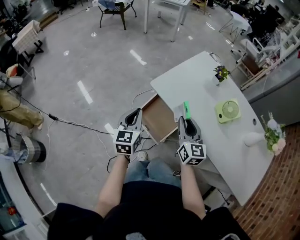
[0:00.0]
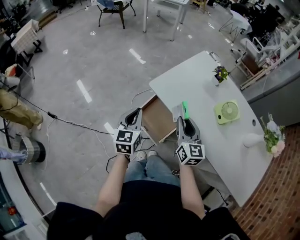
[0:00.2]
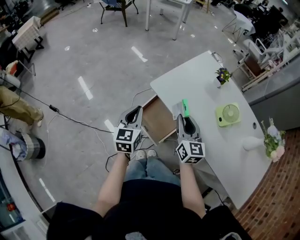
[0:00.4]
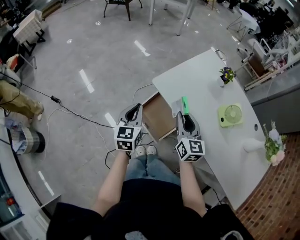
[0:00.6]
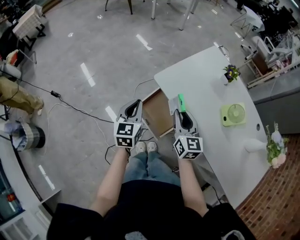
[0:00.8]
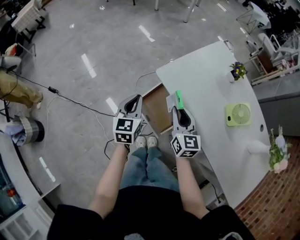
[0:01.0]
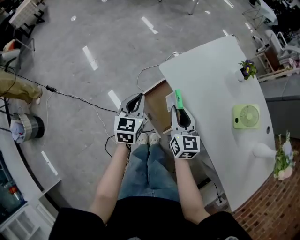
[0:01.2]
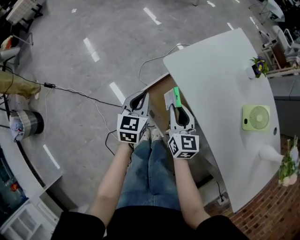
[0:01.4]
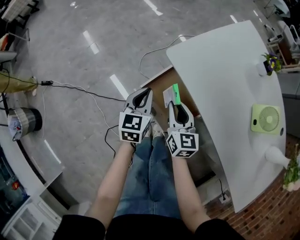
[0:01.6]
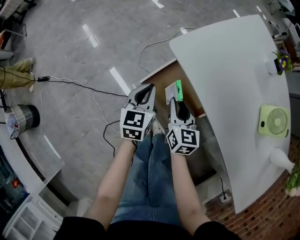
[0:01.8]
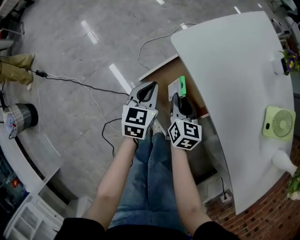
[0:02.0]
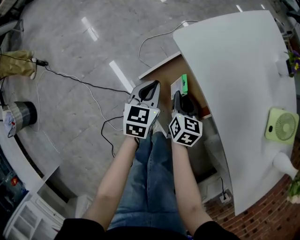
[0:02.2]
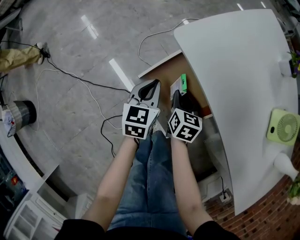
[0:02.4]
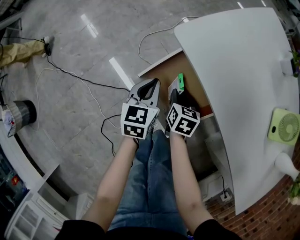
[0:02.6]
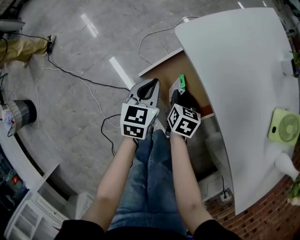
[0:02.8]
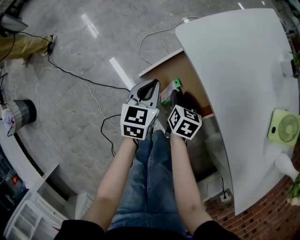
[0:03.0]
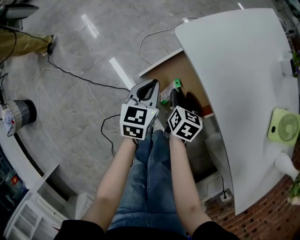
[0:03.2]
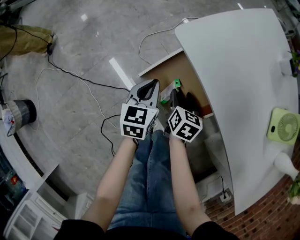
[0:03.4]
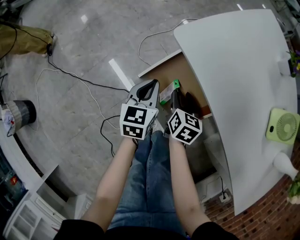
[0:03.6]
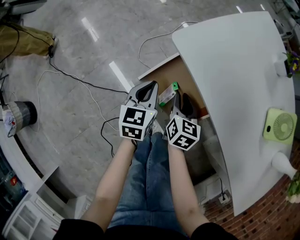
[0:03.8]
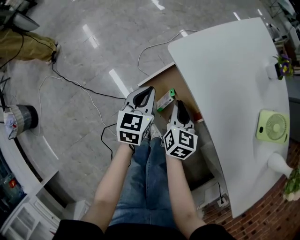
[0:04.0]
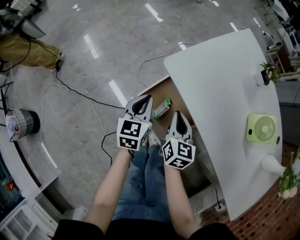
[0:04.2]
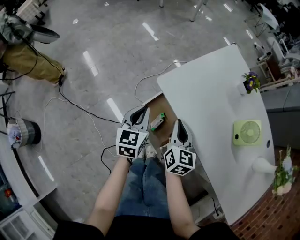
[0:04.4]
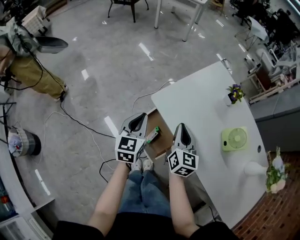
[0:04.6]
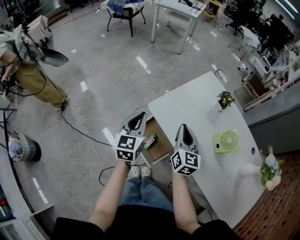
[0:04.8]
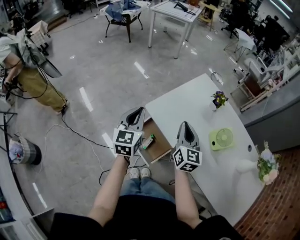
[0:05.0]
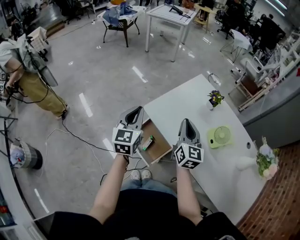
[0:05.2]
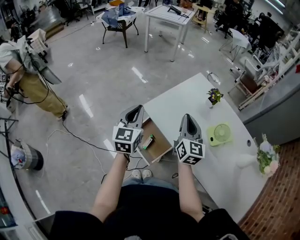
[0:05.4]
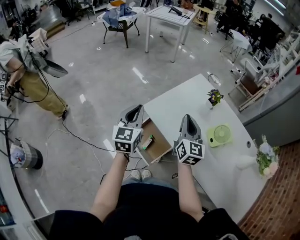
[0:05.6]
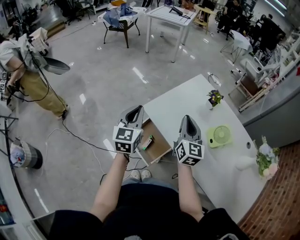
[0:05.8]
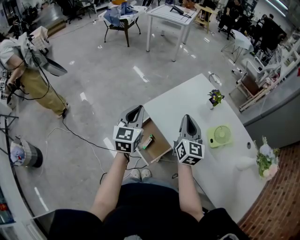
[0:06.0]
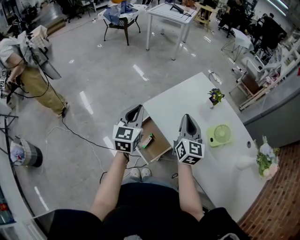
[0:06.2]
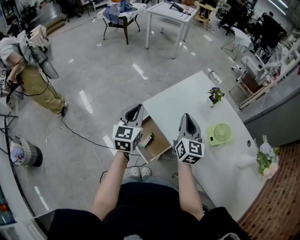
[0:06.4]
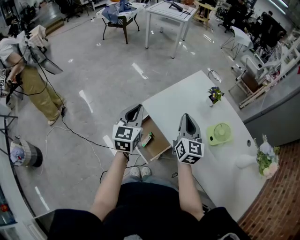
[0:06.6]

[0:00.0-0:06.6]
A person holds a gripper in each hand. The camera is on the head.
0:00.0 to 0:01.6: The left gripper shifts some 25 cm downward and forward. The right gripper travels downward by approximately 25 cm.
0:01.6 to 0:03.2: The right gripper is displaced downward by some 15 cm, swivels approximately 30 degrees, and opens its fingers. The left gripper heads downward, covering roughly 10 cm.
0:03.2 to 0:05.0: The two grippers go some 40 cm upward. The left gripper turns by about 30 degrees. The right gripper tips its fingers upward by about 40 degrees, and closes.
0:05.0 to 0:06.6: The grippers move only a little.

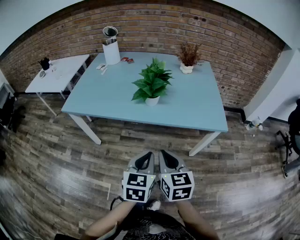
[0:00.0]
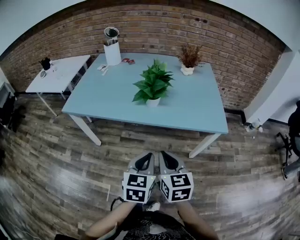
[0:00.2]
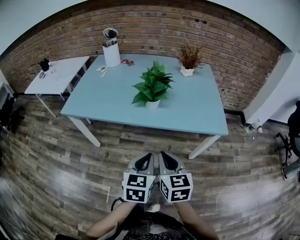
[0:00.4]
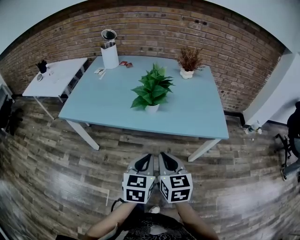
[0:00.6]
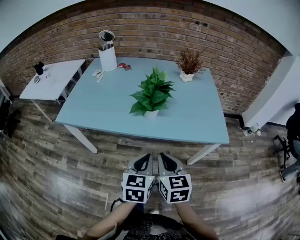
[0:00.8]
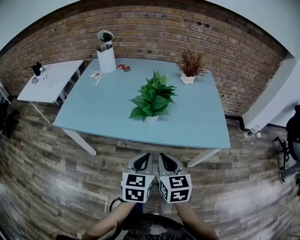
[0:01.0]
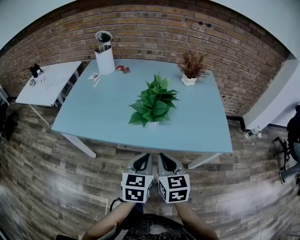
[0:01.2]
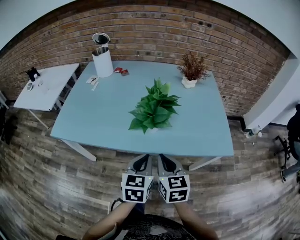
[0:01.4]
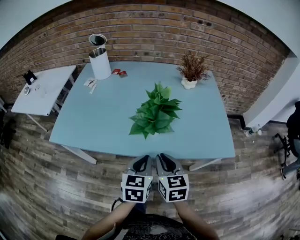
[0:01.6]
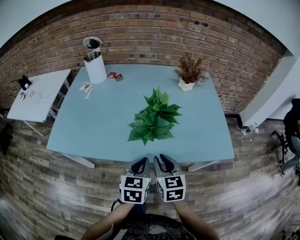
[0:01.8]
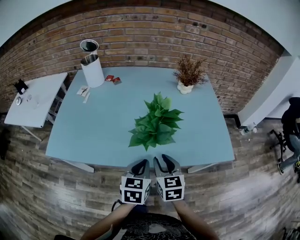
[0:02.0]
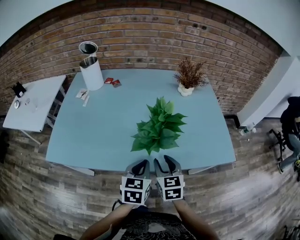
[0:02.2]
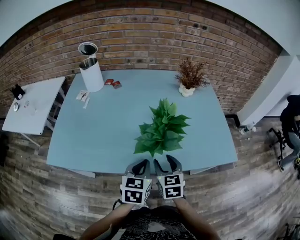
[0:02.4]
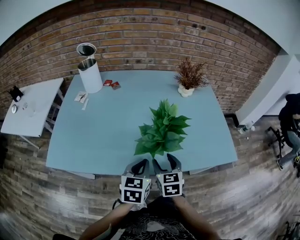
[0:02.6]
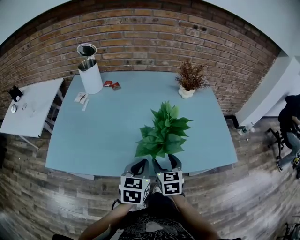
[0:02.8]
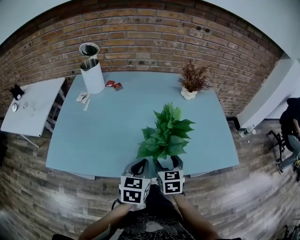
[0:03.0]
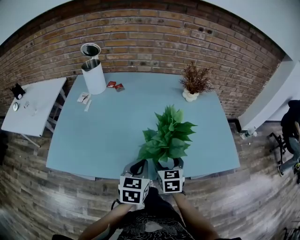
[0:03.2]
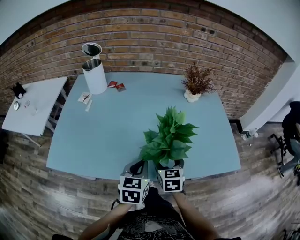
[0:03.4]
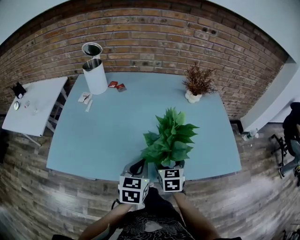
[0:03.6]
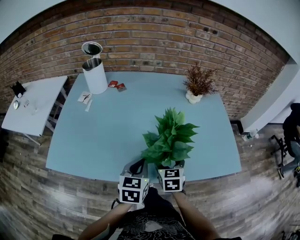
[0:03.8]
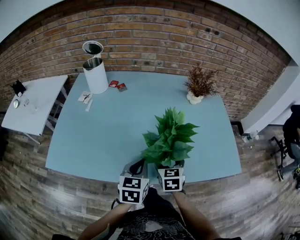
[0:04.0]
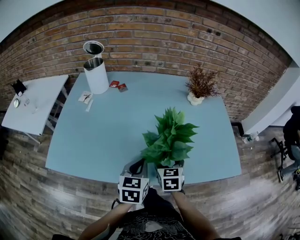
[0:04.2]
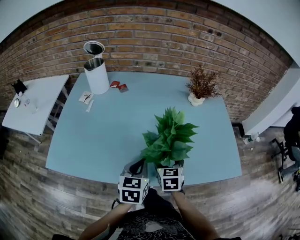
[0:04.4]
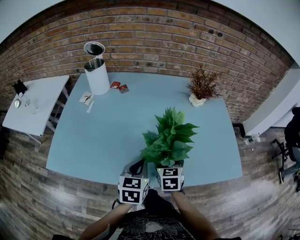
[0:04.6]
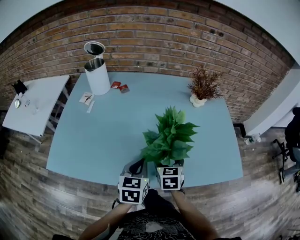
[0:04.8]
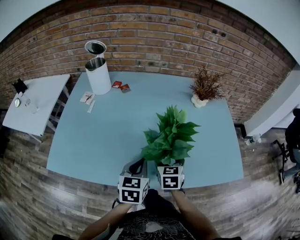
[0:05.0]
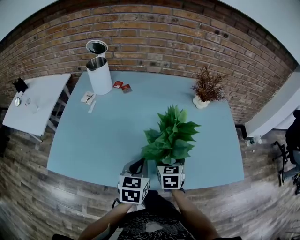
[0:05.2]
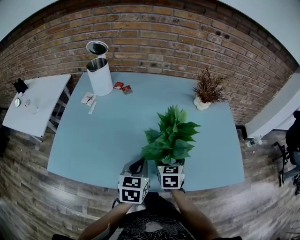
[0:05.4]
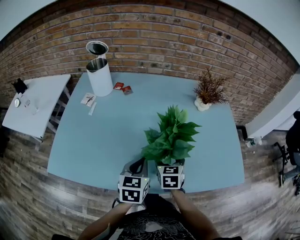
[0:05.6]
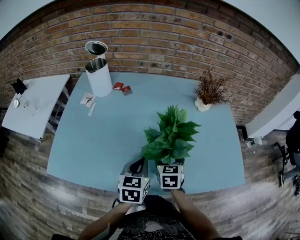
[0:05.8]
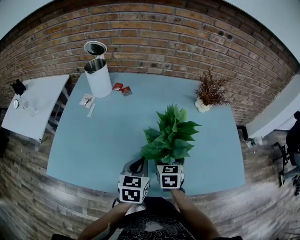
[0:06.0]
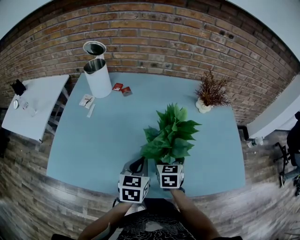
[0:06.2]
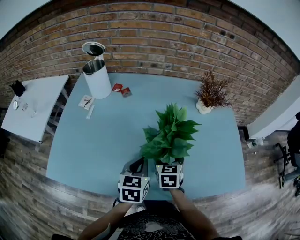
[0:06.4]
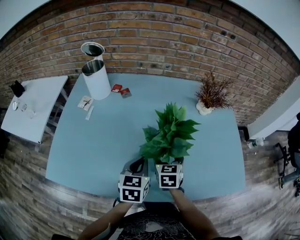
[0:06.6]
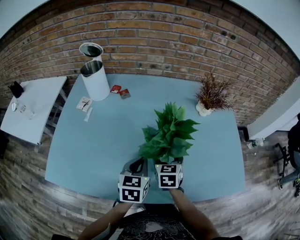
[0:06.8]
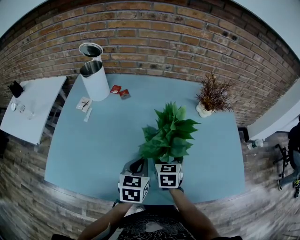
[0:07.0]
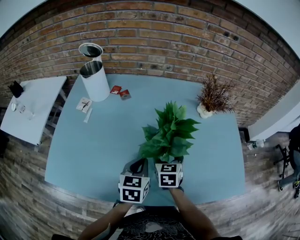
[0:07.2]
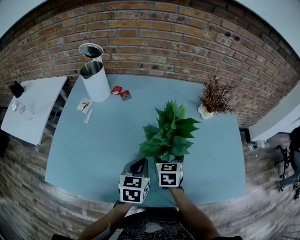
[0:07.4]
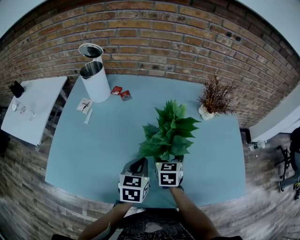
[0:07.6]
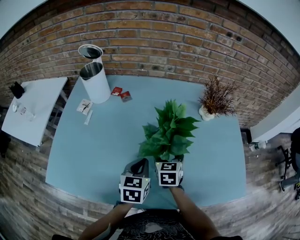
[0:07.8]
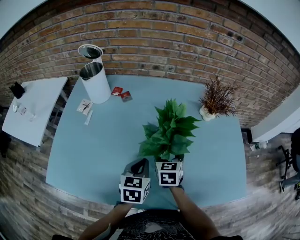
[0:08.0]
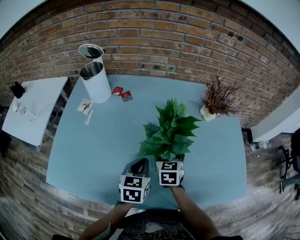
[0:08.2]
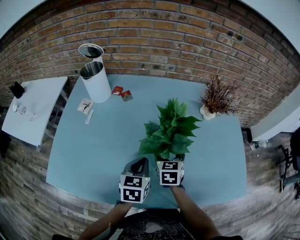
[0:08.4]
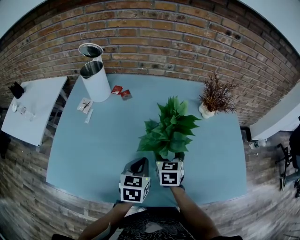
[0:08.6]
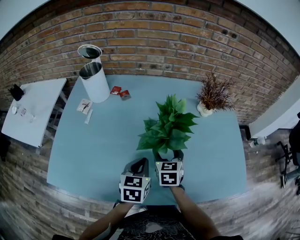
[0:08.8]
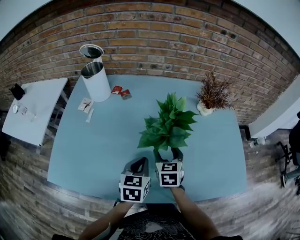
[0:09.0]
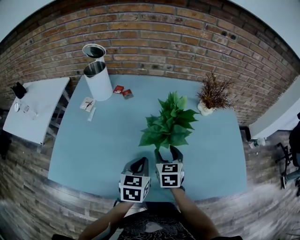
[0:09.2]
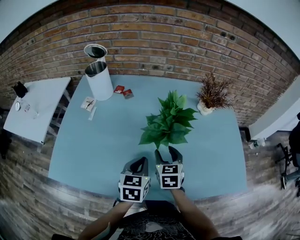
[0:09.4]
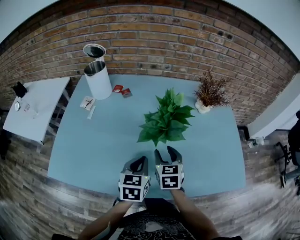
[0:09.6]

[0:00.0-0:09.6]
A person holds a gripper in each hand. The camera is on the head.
0:00.0 to 0:01.6: The grippers both shift forward by some 20 cm.
0:01.6 to 0:03.2: The left gripper moves forward and to the left, some 10 cm. Meanwhile the right gripper shifts about 15 cm forward and downward, and opens up.
0:03.2 to 0:04.8: The right gripper moves forward, about 5 cm.
0:04.8 to 0:06.4: Both grippers travel together forward, roughly 5 cm.
0:06.4 to 0:08.0: The right gripper shifts approximately 5 cm forward.
0:08.0 to 0:09.6: The right gripper moves backward, approximately 5 cm, and closes up, while the left gripper ends up some 5 cm from where it was.

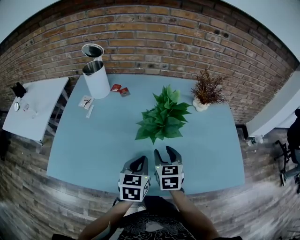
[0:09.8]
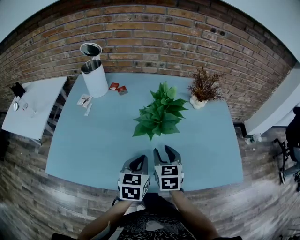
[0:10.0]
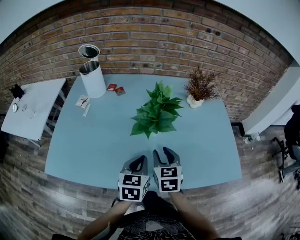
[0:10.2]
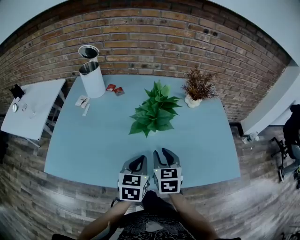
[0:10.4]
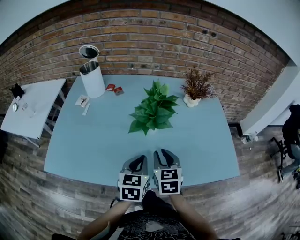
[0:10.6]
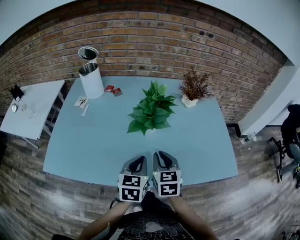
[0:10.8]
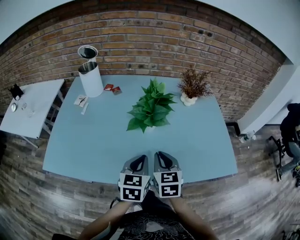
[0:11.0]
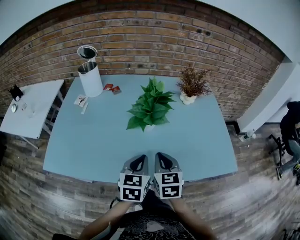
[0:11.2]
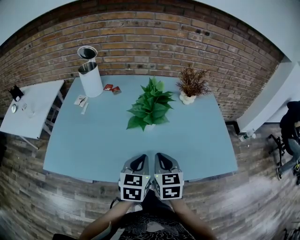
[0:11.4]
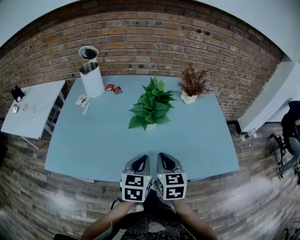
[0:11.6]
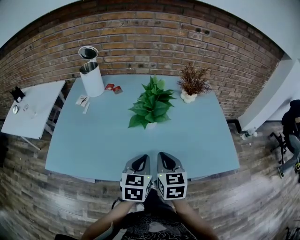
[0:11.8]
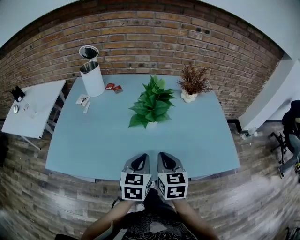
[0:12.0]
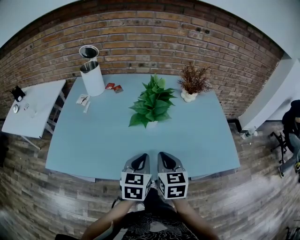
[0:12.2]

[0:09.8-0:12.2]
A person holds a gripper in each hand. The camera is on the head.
0:09.8 to 0:11.0: The right gripper travels backward by some 10 cm, and closes its fingers. Meanwhile the left gripper shifts roughly 5 cm backward.
0:11.0 to 0:12.2: The grippers stay close to where they were, moving slightly.

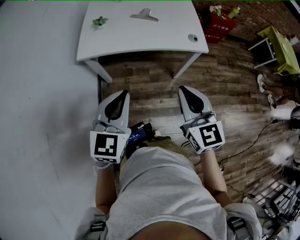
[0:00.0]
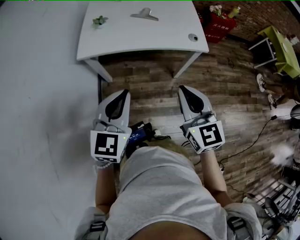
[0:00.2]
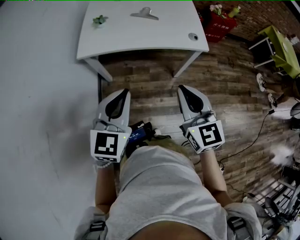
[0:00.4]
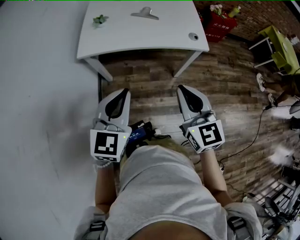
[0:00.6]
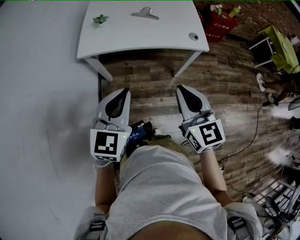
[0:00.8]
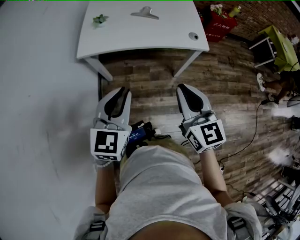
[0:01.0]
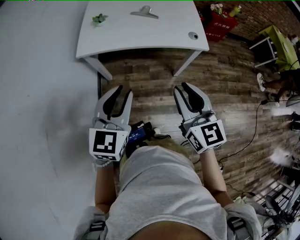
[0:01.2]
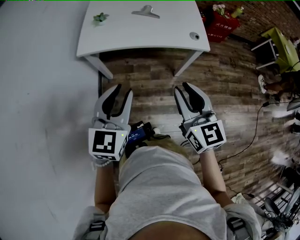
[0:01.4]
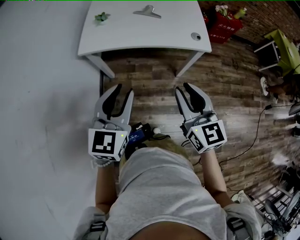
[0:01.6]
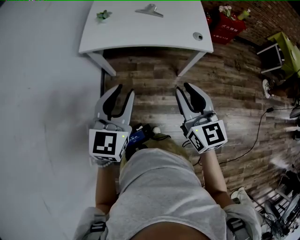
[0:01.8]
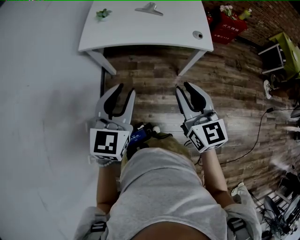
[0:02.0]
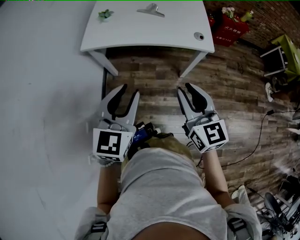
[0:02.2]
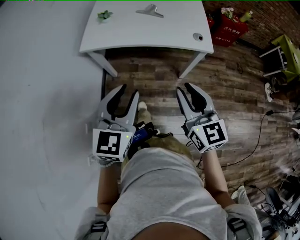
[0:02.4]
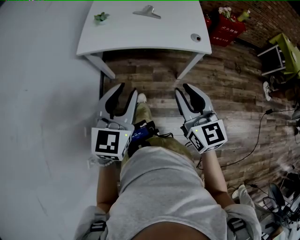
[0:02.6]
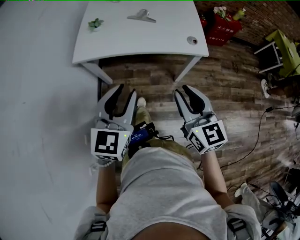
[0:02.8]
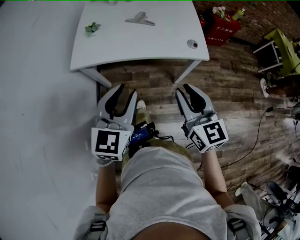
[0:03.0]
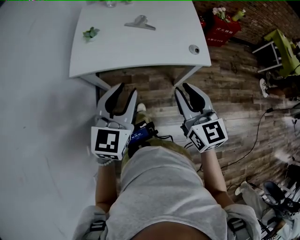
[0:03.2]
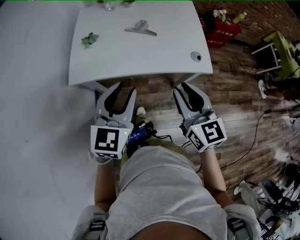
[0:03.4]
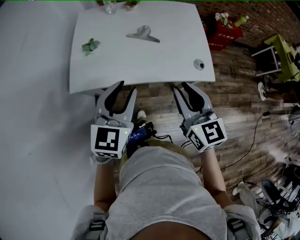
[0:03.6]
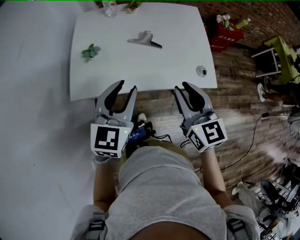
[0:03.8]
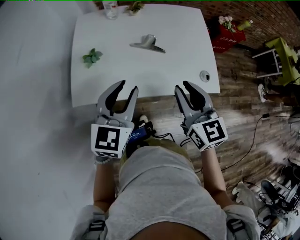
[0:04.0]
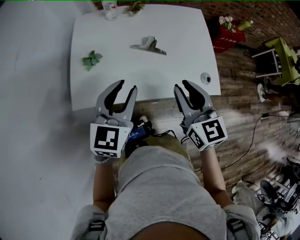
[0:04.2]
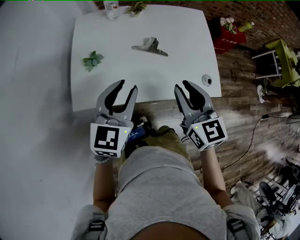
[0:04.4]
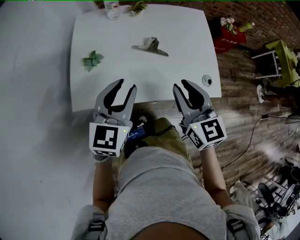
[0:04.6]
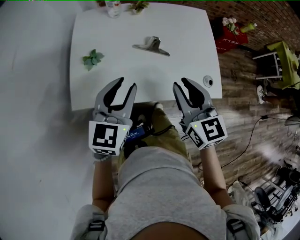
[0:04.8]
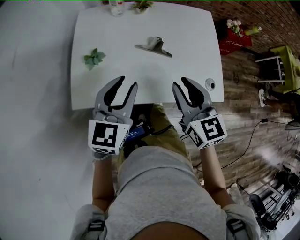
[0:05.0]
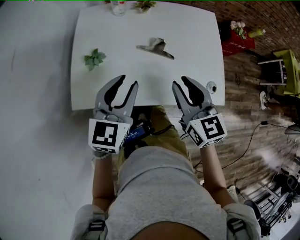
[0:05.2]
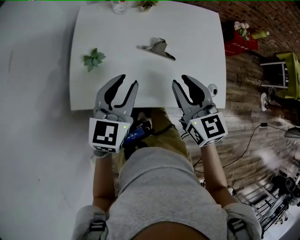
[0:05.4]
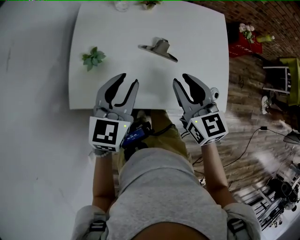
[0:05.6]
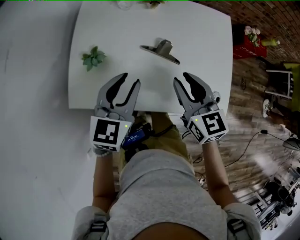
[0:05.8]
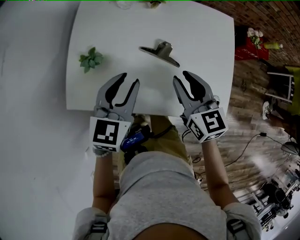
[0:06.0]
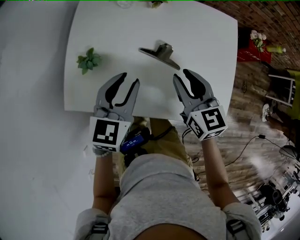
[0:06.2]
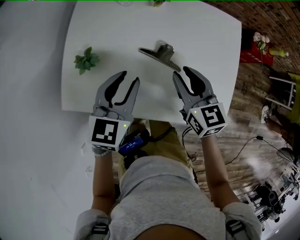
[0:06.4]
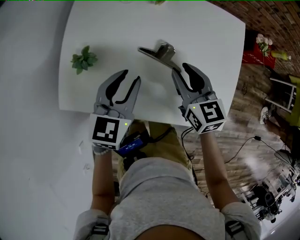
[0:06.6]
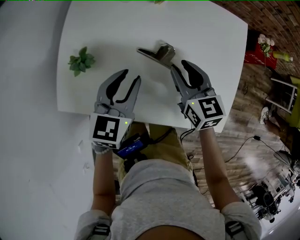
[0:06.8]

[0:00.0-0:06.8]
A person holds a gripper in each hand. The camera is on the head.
0:00.0 to 0:01.4: The left gripper opens its fingers, while the right gripper opens up.
0:01.4 to 0:02.8: The left gripper changes place by about 5 cm, while the right gripper changes place by some 5 cm.
0:02.8 to 0:04.0: The two grippers go approximately 30 cm forward.
0:04.0 to 0:05.4: Both grippers move forward, about 10 cm.
0:05.4 to 0:06.8: The two grippers go some 15 cm forward and downward.
